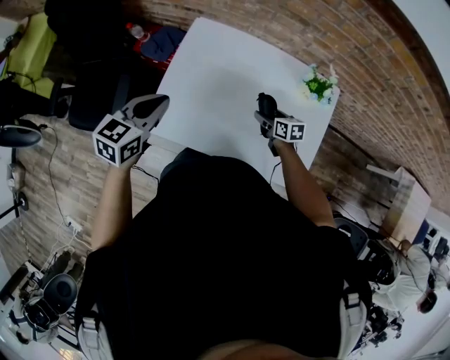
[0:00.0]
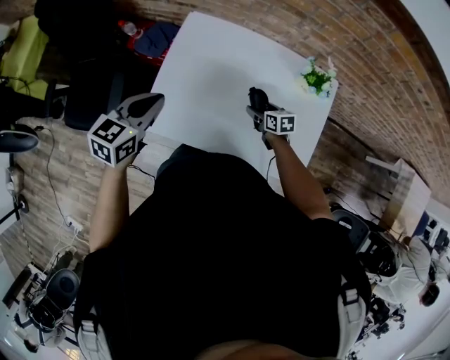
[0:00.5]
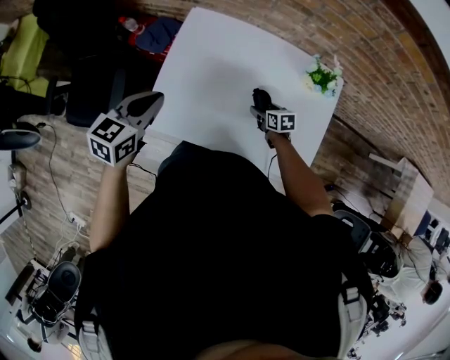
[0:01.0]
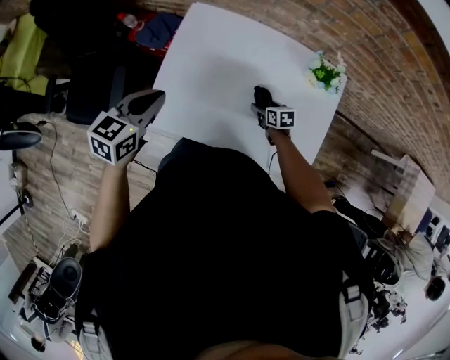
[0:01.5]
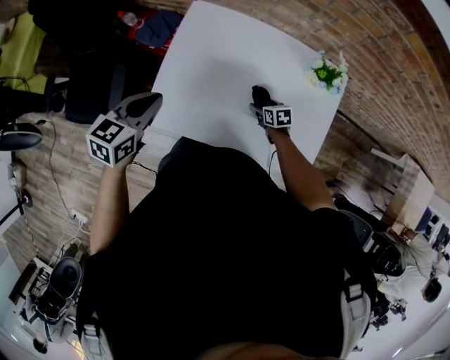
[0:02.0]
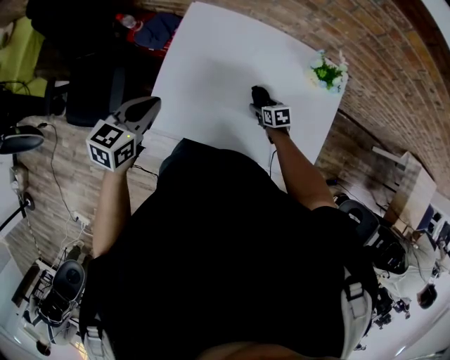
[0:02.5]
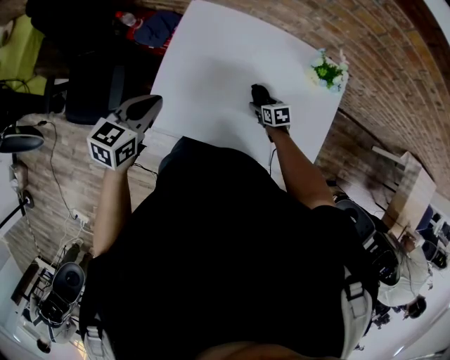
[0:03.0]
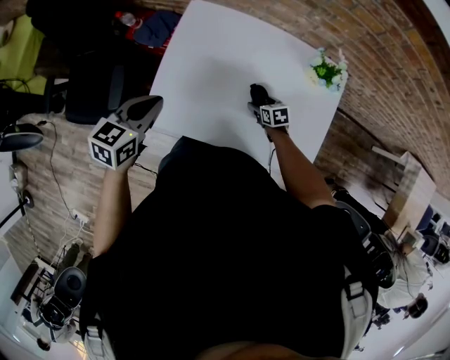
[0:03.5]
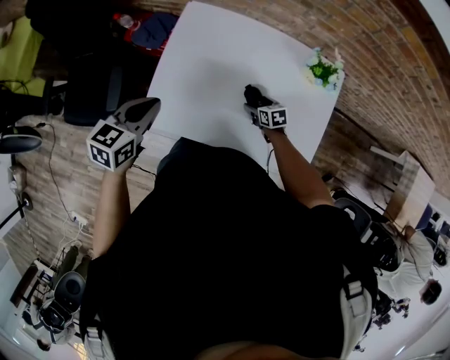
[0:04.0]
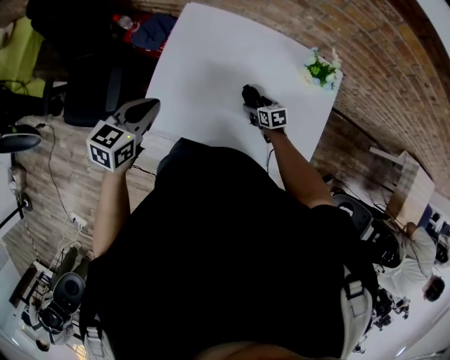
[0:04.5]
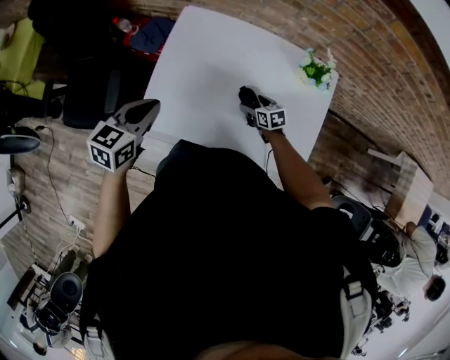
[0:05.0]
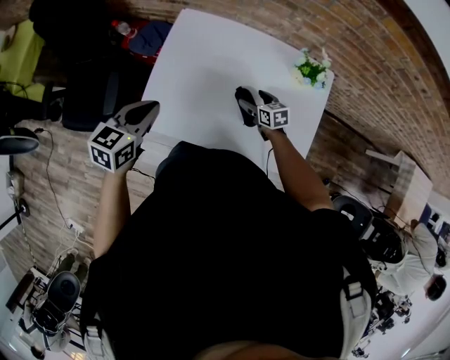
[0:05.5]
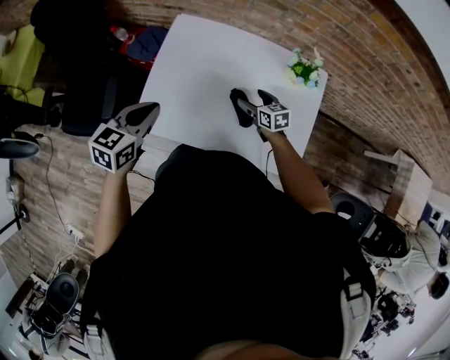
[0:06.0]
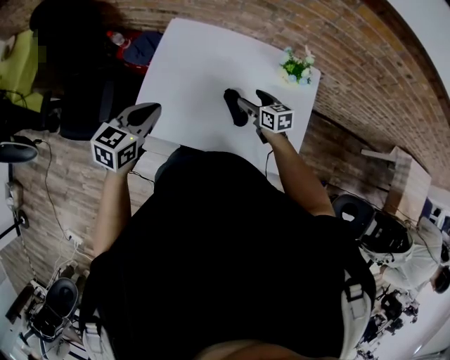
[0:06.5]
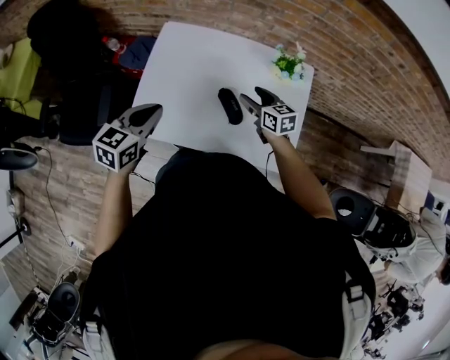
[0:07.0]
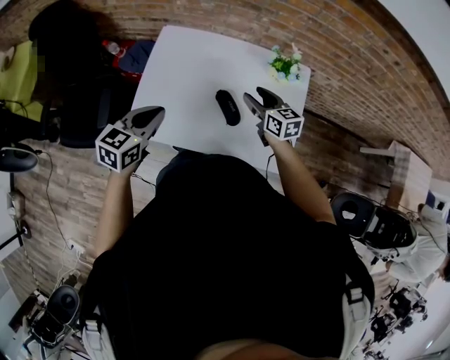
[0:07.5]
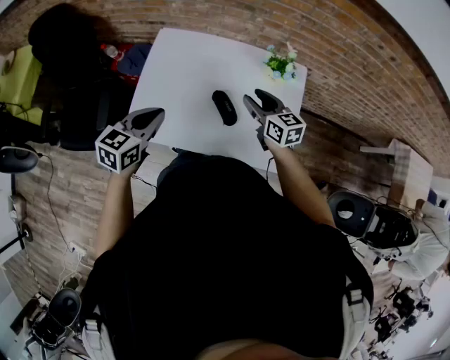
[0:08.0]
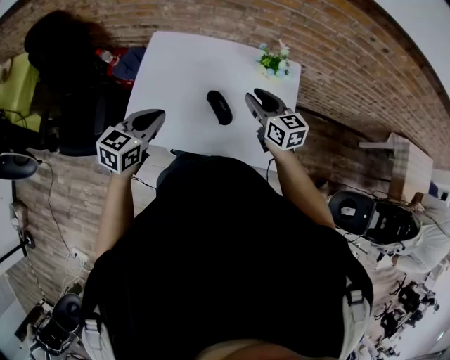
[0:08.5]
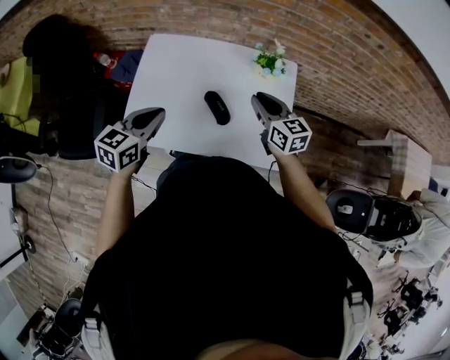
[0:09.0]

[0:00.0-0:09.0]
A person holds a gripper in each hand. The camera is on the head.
0:00.0 to 0:02.0: The right gripper is displaced downward by approximately 10 cm.
0:02.0 to 0:04.5: There are only small adjustments of the grippers.
0:04.5 to 0:07.0: The right gripper moves upward, roughly 20 cm, and changes its angle by roughly 20 degrees, while the left gripper moves to the right and backward, roughly 10 cm.
0:07.0 to 0:09.0: The left gripper heads to the right, covering some 5 cm; the right gripper is displaced upward, to the right and backward by some 15 cm, and closes up.

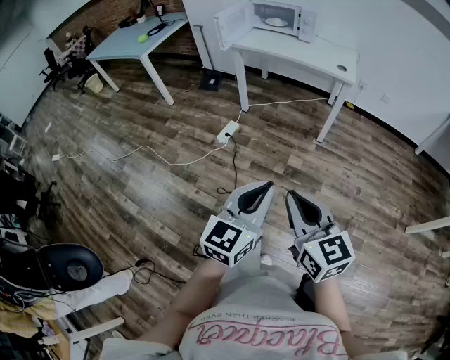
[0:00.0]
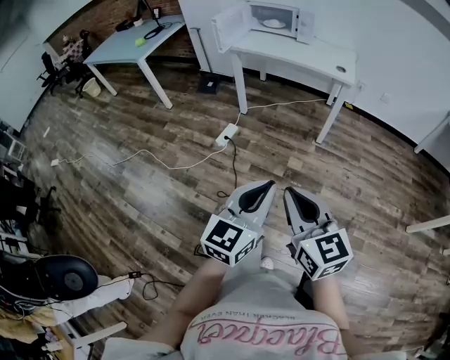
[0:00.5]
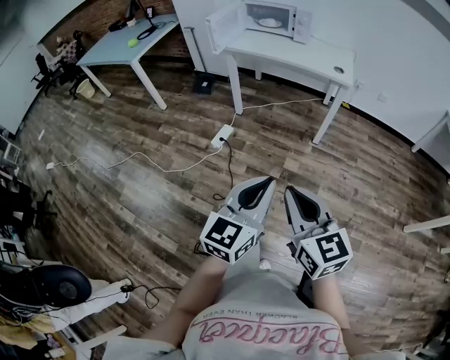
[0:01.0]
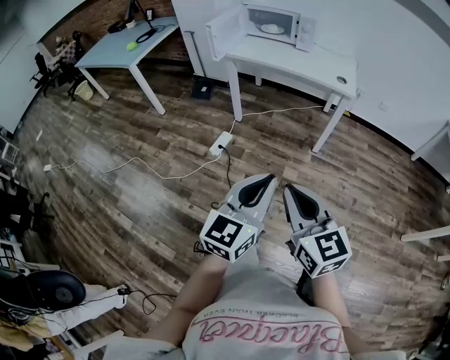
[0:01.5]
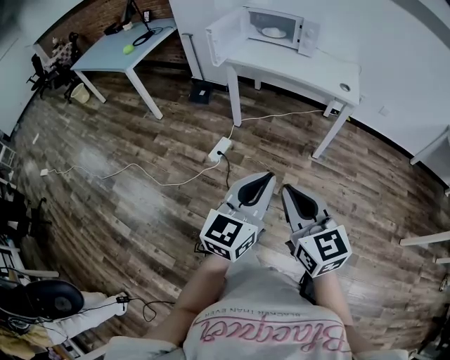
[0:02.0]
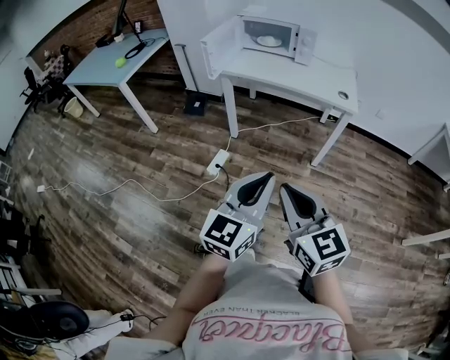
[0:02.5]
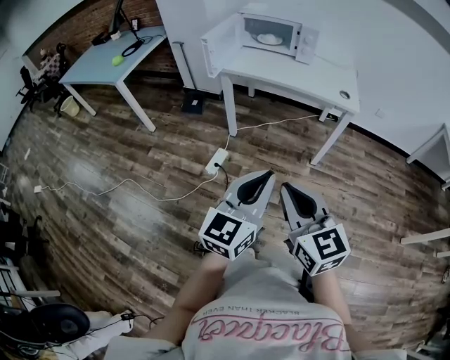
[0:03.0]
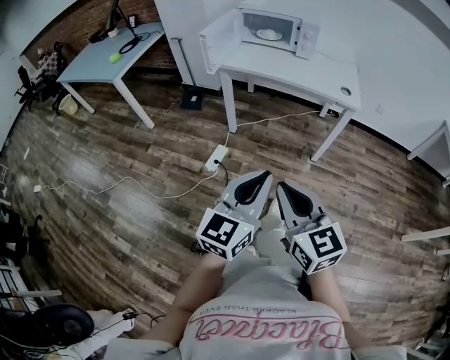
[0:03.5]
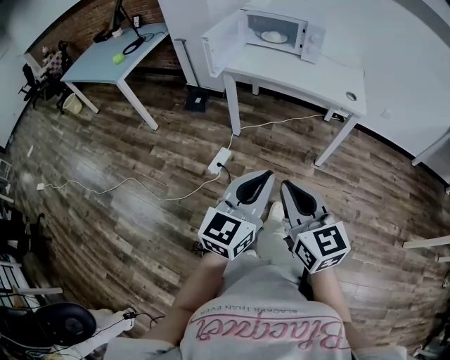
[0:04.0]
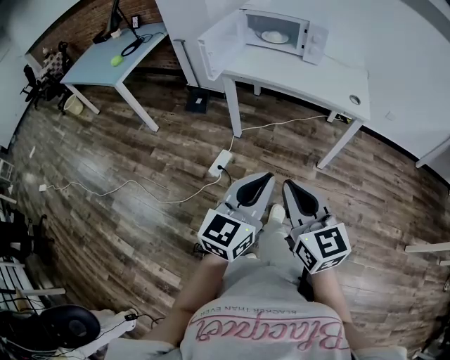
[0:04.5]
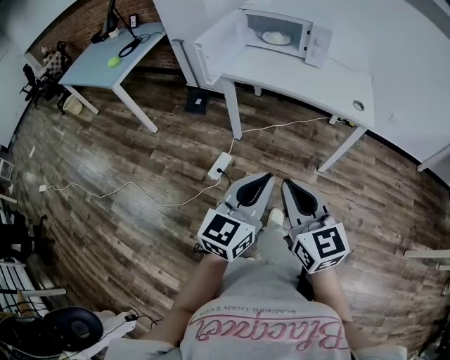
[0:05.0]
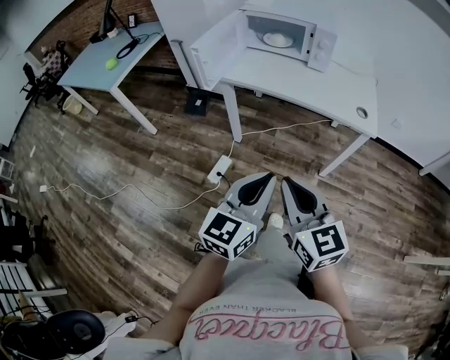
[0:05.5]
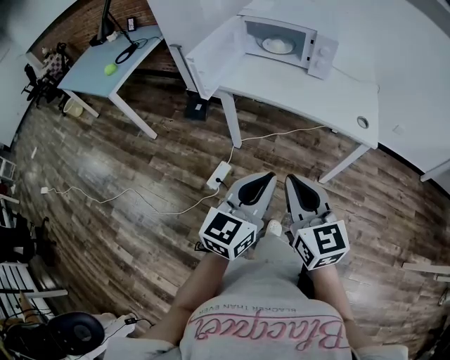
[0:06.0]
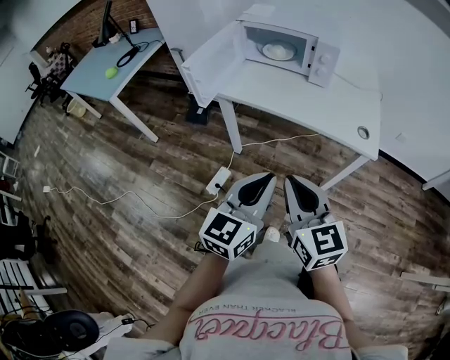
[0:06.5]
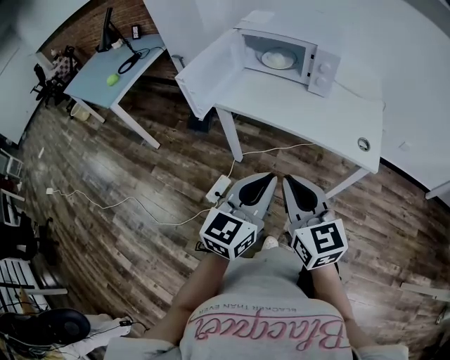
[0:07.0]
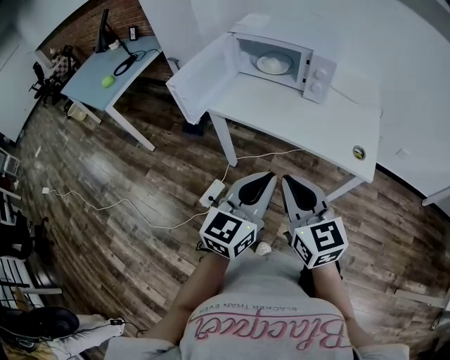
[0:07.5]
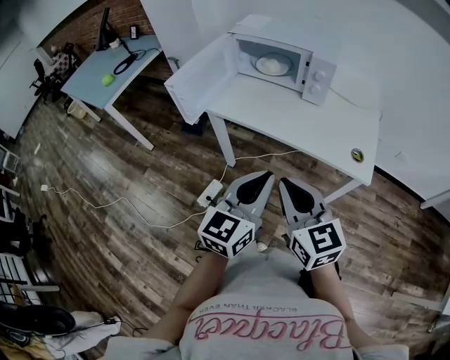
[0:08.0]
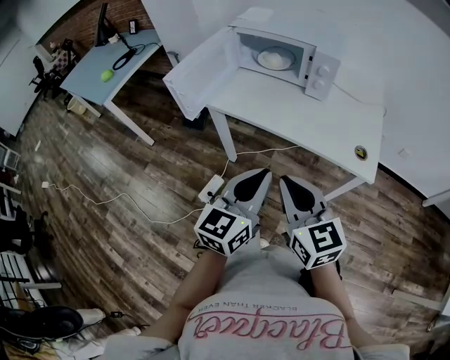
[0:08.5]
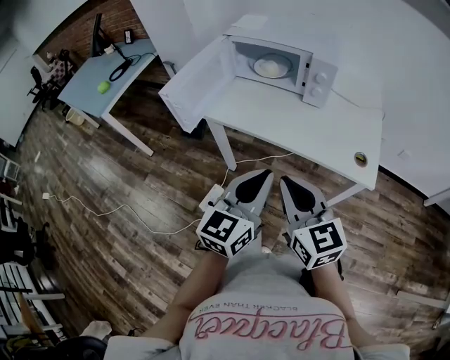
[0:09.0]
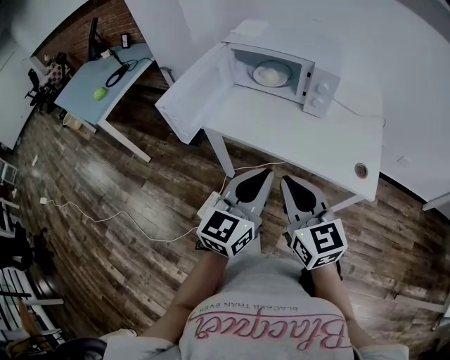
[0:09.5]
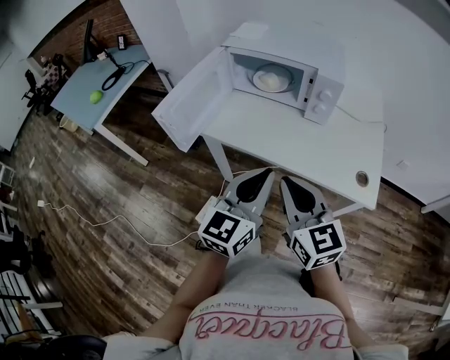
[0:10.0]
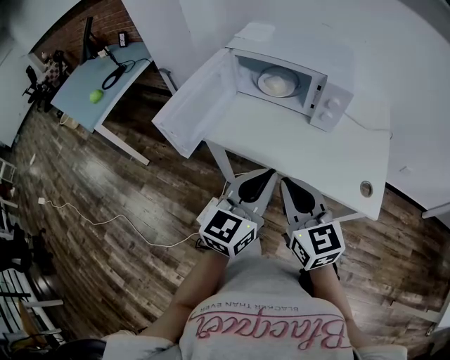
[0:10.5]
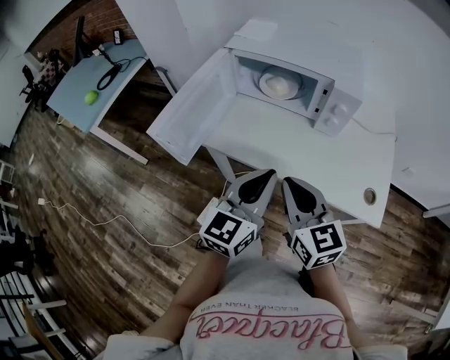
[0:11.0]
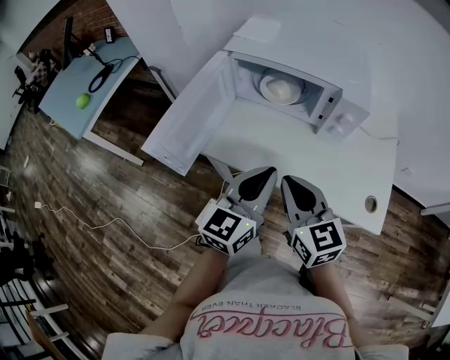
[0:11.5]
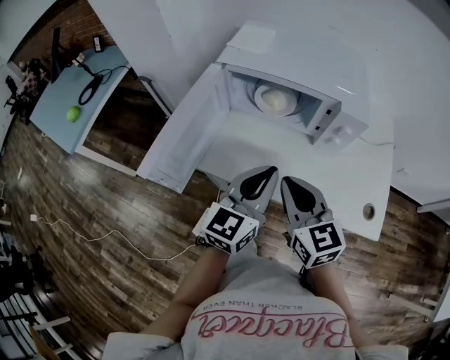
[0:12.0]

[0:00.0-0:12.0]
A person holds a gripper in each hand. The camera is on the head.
0:00.0 to 0:02.0: Both grippers travel together forward, about 15 cm.
0:02.0 to 0:04.0: Both grippers travel together forward, about 10 cm.
0:04.0 to 0:06.0: The grippers both shift forward by roughly 20 cm.
0:06.0 to 0:08.0: The two grippers go approximately 15 cm forward and to the right.
0:08.0 to 0:10.0: Both grippers move forward, roughly 10 cm.
0:10.0 to 0:12.0: The grippers both shift forward by roughly 15 cm.

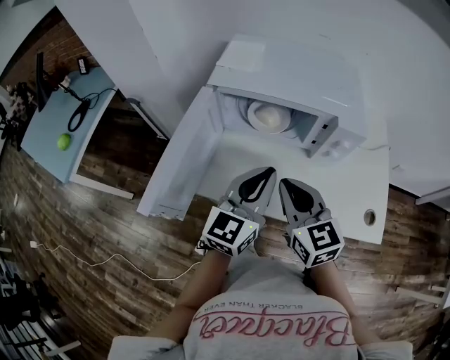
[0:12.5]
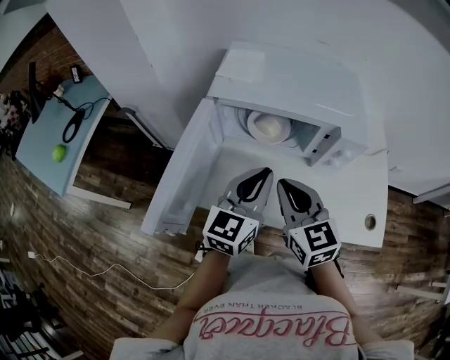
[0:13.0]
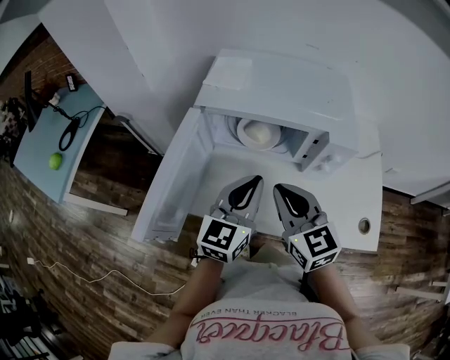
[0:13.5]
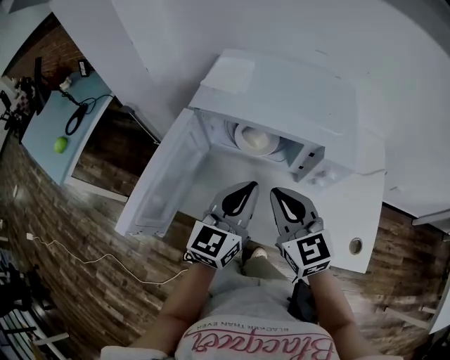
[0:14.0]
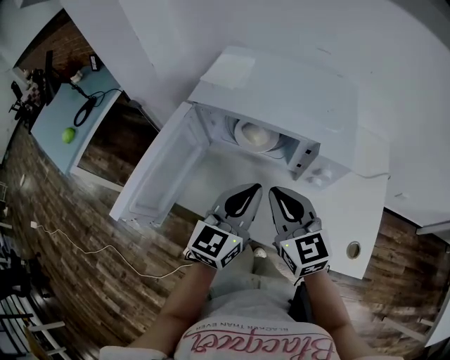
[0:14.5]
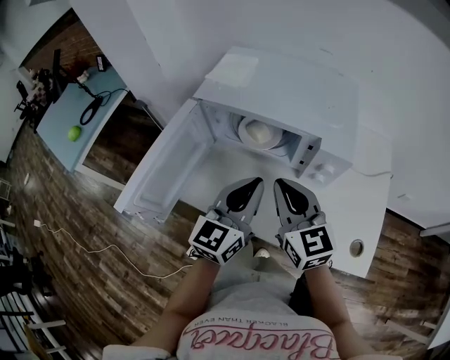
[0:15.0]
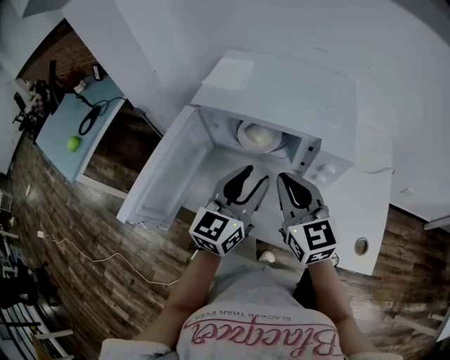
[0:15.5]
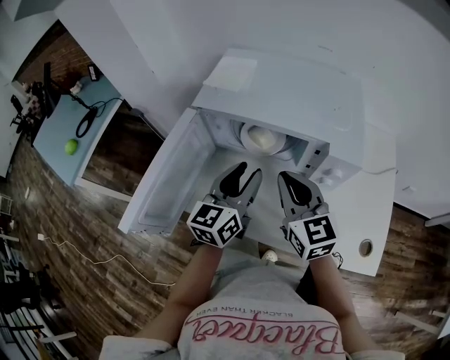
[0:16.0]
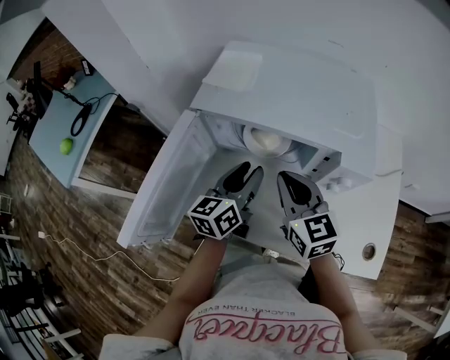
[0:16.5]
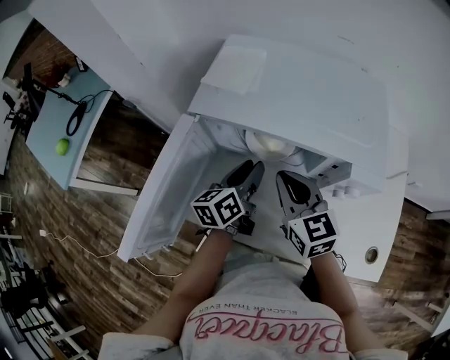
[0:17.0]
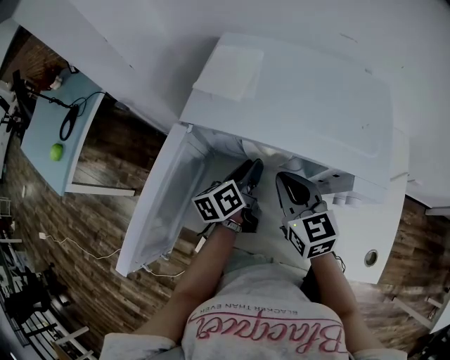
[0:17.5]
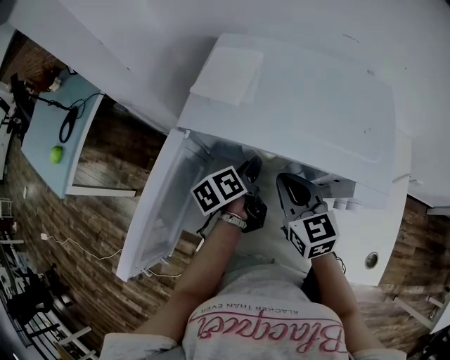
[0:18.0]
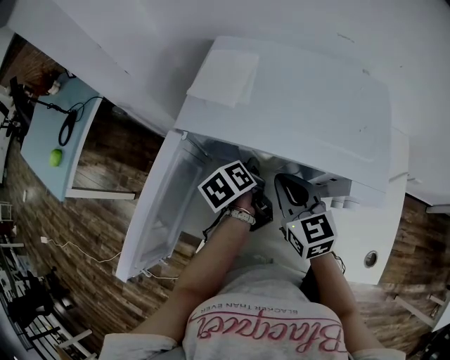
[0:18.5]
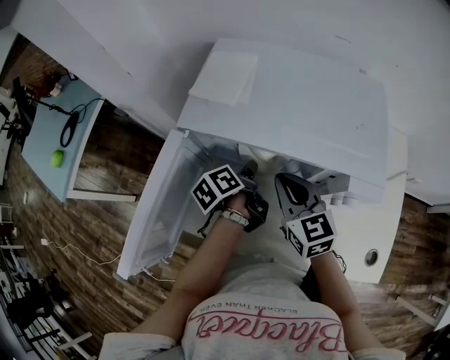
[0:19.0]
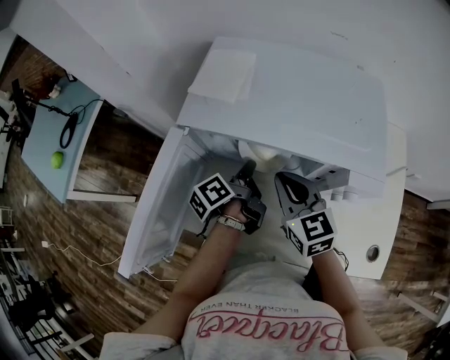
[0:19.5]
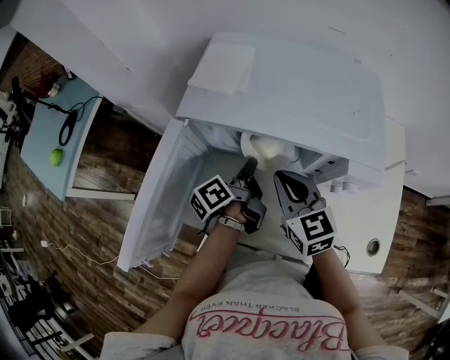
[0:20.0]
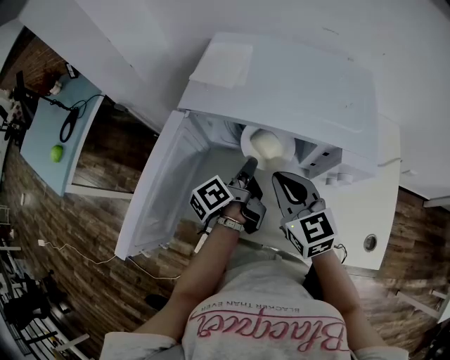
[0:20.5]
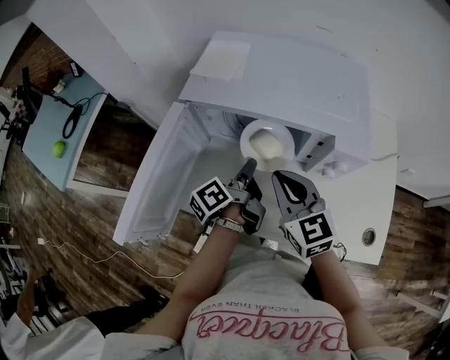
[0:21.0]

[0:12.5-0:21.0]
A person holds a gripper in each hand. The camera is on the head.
0:12.5 to 0:14.5: The right gripper heads to the right, covering approximately 5 cm. Meanwhile the left gripper moves about 5 cm.
0:14.5 to 0:16.5: The left gripper is displaced forward, downward and to the left by about 15 cm, rotates approximately 20 degrees, and opens up; the right gripper shifts approximately 10 cm forward.
0:16.5 to 0:19.0: The left gripper is displaced downward and forward by some 10 cm, rotates around the line of its fingers by about 40 degrees, counterclockwise from behind, and closes; the right gripper moves forward, roughly 5 cm.
0:19.0 to 0:21.0: Both grippers move backward, approximately 10 cm. The left gripper swivels approximately 20 degrees.
